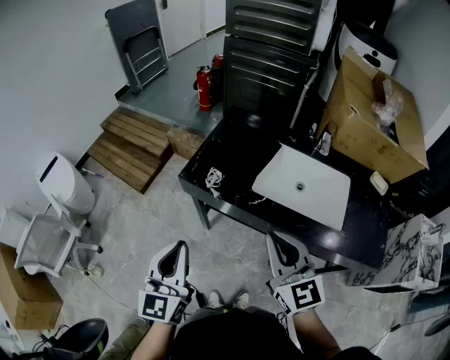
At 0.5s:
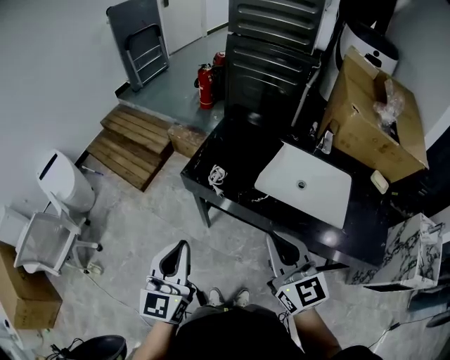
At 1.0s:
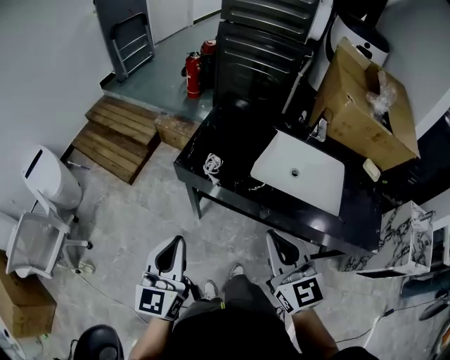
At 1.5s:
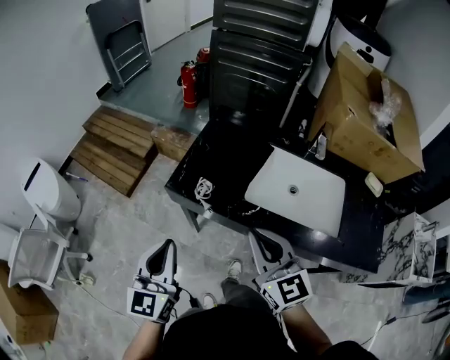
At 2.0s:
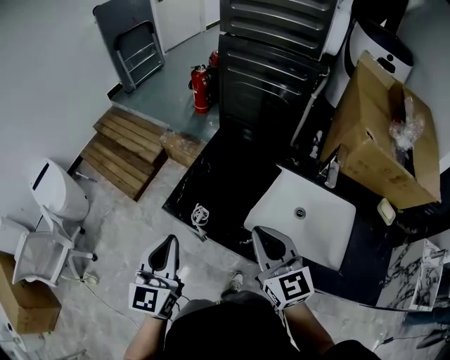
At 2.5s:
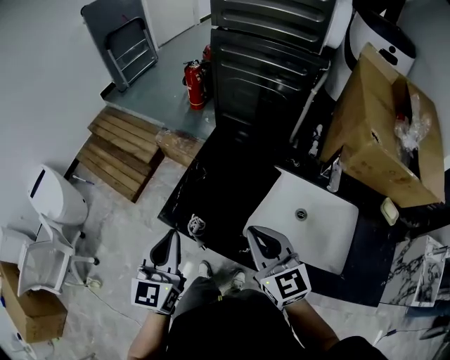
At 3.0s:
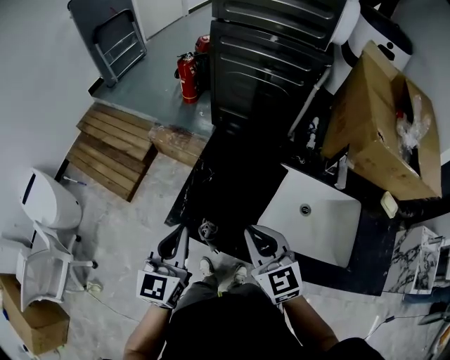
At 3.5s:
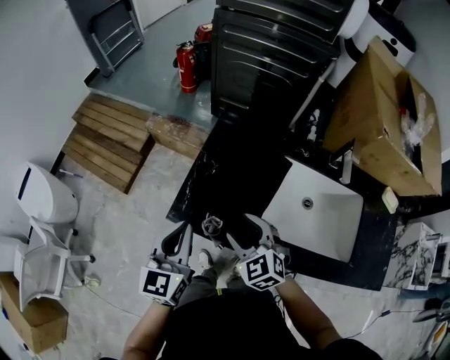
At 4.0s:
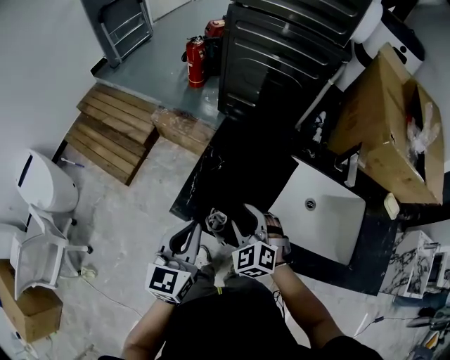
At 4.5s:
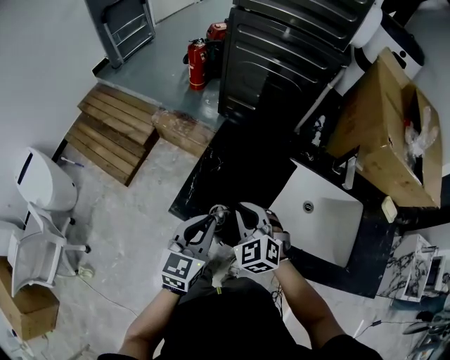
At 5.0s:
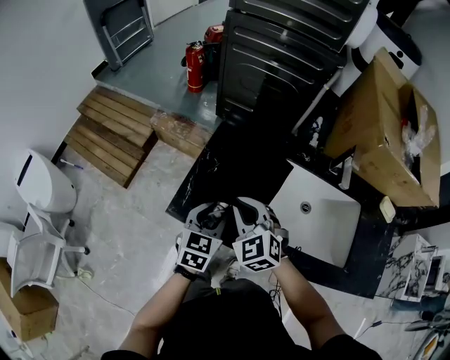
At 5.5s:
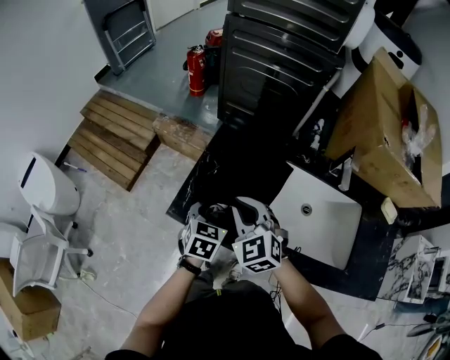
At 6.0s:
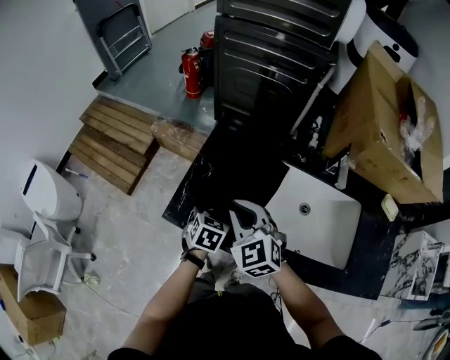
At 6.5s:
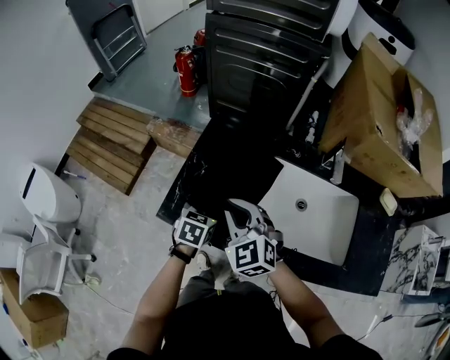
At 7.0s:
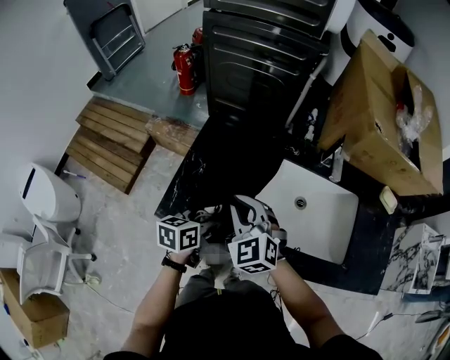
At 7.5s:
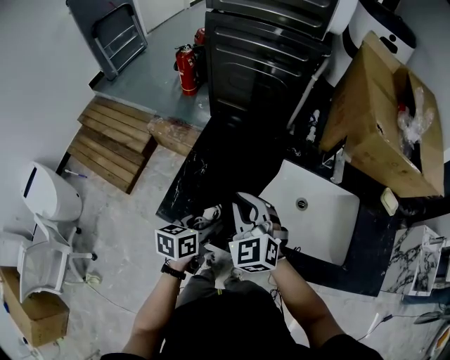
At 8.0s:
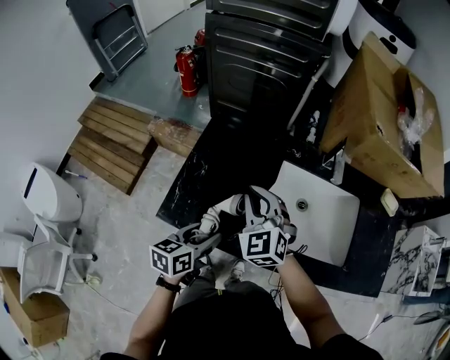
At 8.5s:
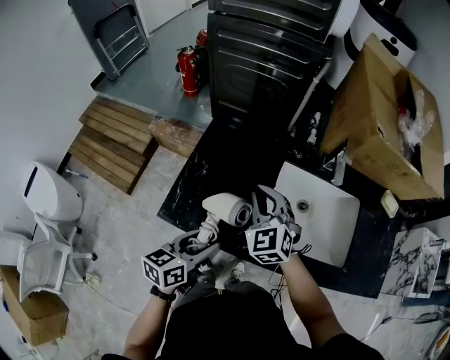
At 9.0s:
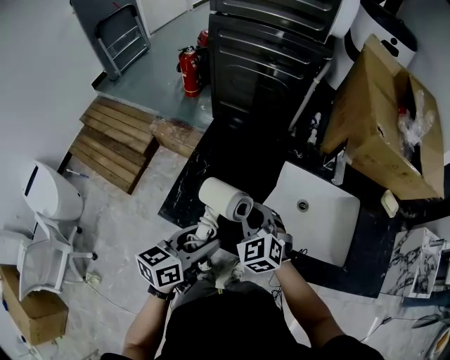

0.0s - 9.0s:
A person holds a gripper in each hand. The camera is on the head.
0.0s - 2.0s: Both grippers travel together forward, approximately 20 cm.
2.0s - 4.5s: The left gripper travels downward and forward by approximately 15 cm, and rotates approximately 20 degrees; the right gripper travels downward, forward and to the left by approximately 20 cm, changes its angle by roughly 40 degrees, and opens and closes again.
4.5s - 7.0s: The right gripper is displaced upward by about 5 cm. The left gripper shifts some 10 cm downward and to the right, changes its angle by some 40 degrees, and opens up.
7.0s - 9.0s: The left gripper goes some 10 cm upward and backward.

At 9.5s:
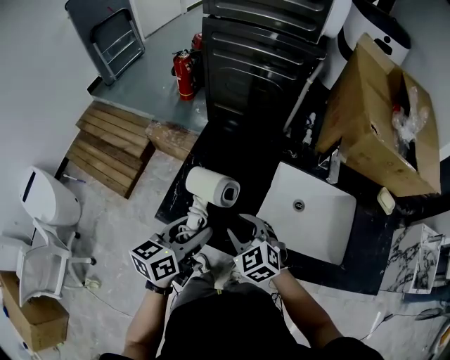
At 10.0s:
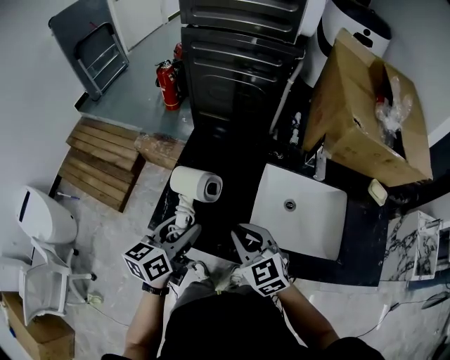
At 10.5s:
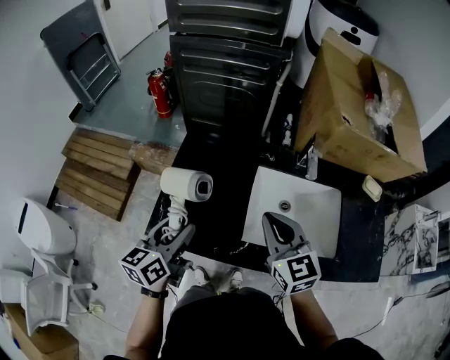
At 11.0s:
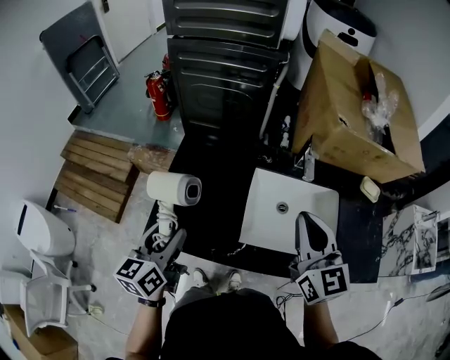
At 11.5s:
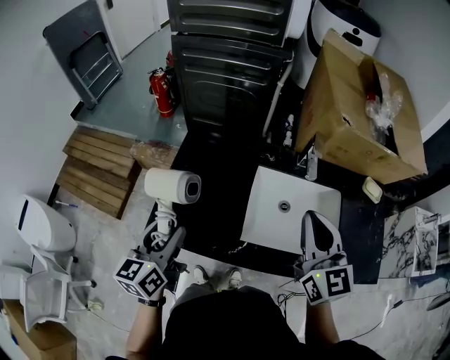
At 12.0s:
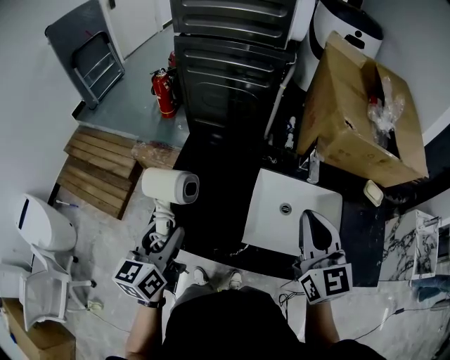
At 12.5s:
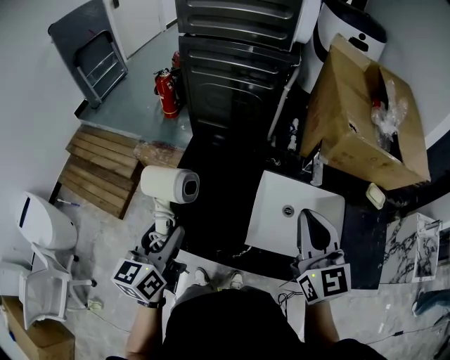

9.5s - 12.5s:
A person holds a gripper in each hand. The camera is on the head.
9.5s - 11.0s: The left gripper shifts by roughly 5 cm, while the right gripper moves upward and to the right, about 30 cm, angles its fingers upward, by some 30 degrees, and closes.
11.0s - 12.5s: The grippers stay close to where they were, moving slightly.

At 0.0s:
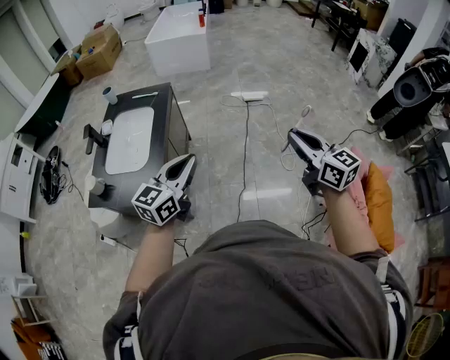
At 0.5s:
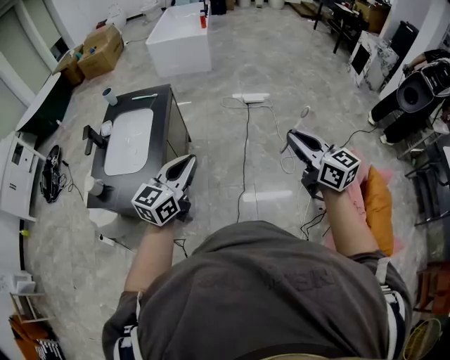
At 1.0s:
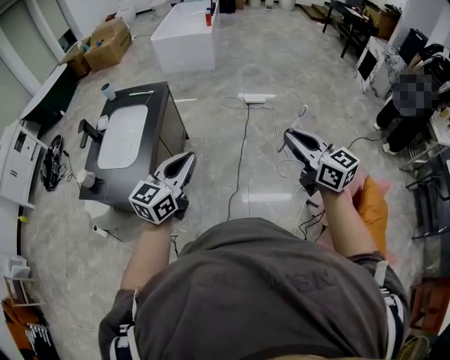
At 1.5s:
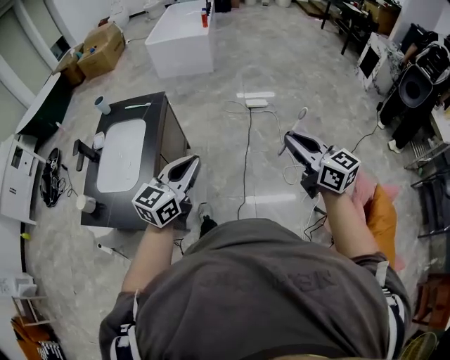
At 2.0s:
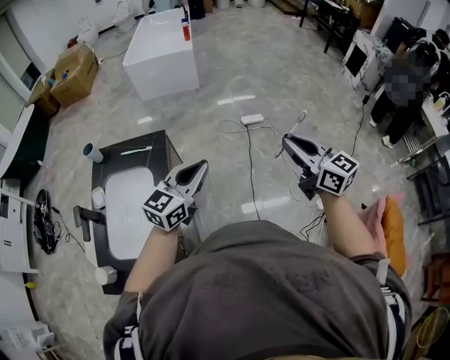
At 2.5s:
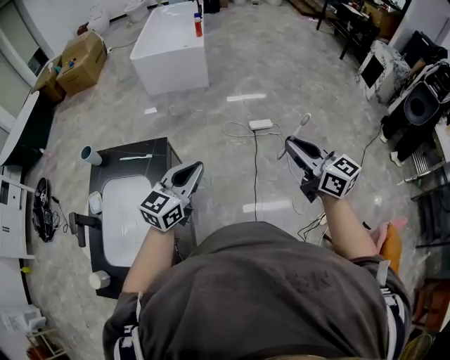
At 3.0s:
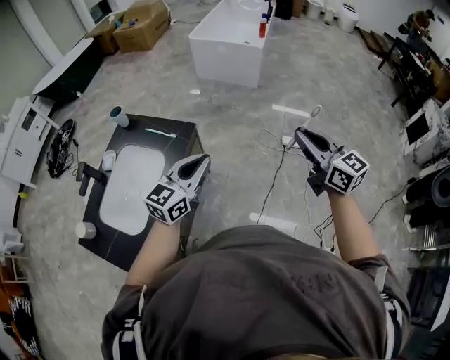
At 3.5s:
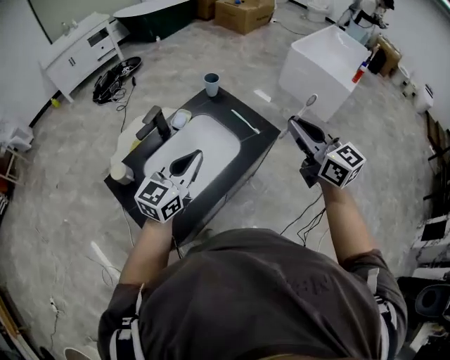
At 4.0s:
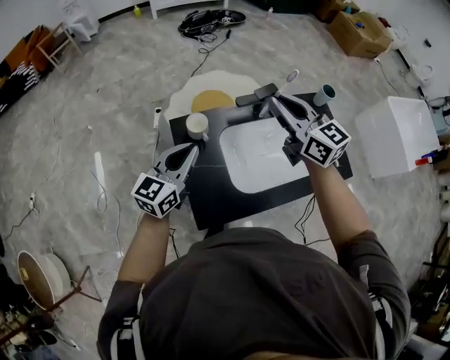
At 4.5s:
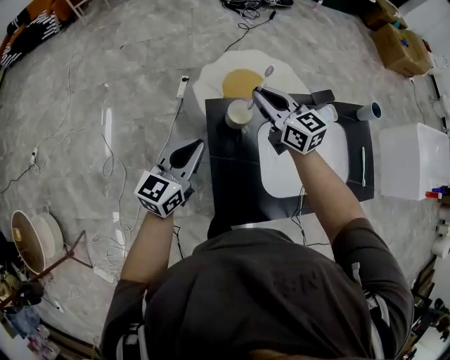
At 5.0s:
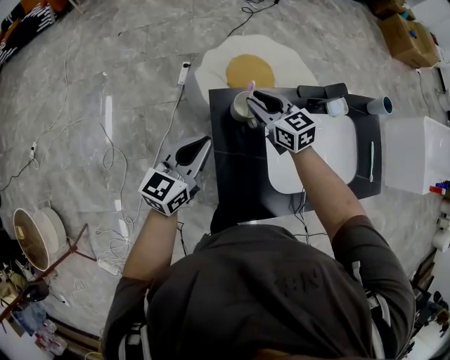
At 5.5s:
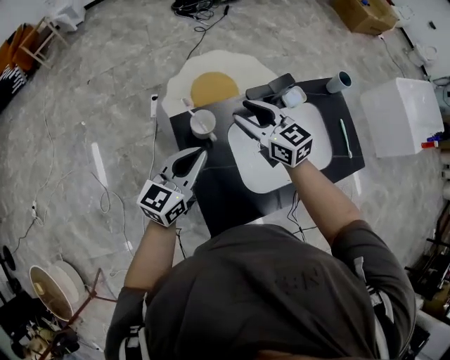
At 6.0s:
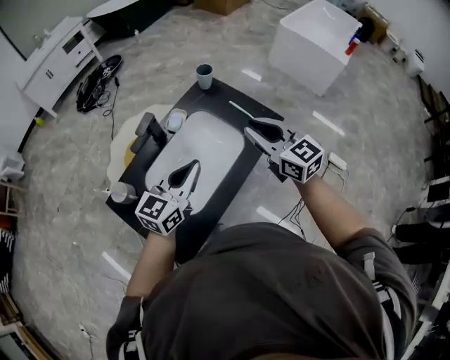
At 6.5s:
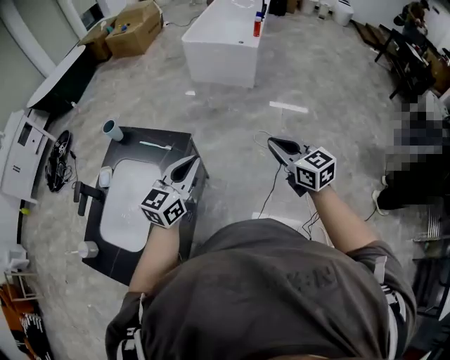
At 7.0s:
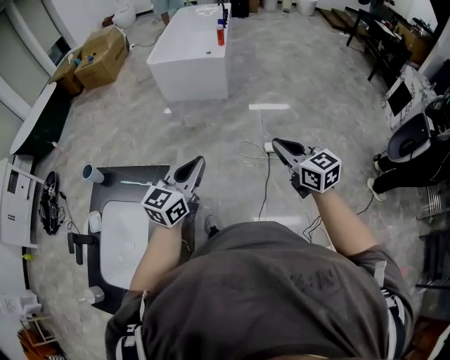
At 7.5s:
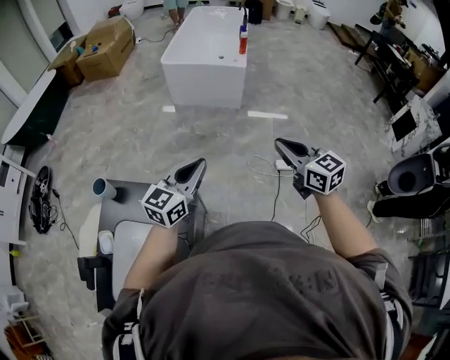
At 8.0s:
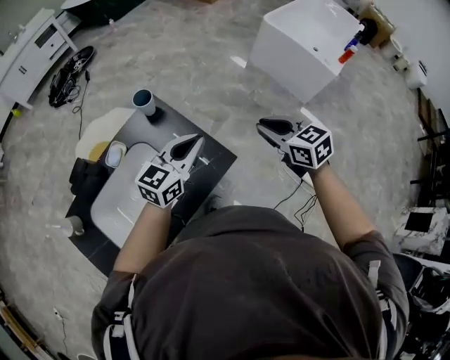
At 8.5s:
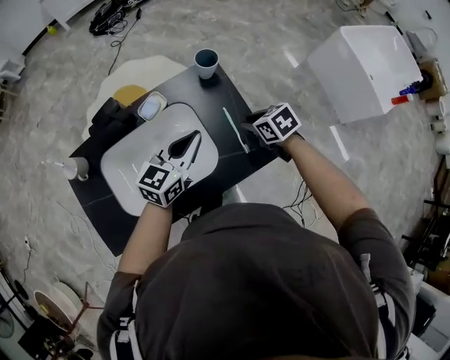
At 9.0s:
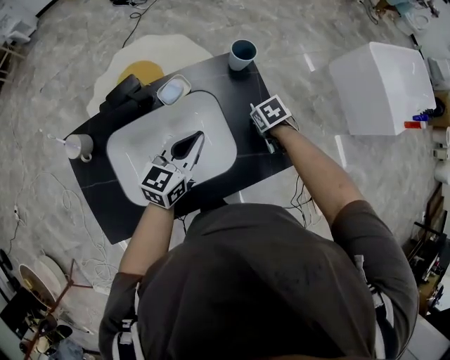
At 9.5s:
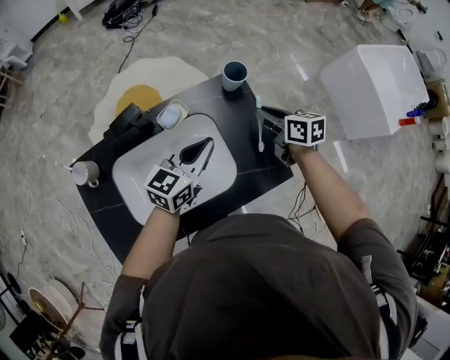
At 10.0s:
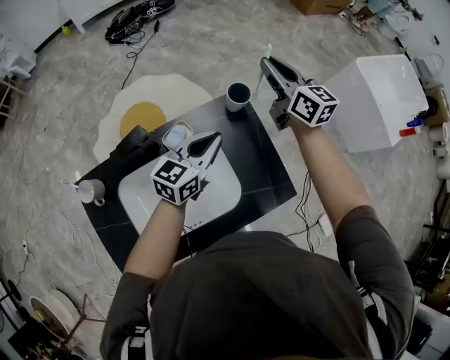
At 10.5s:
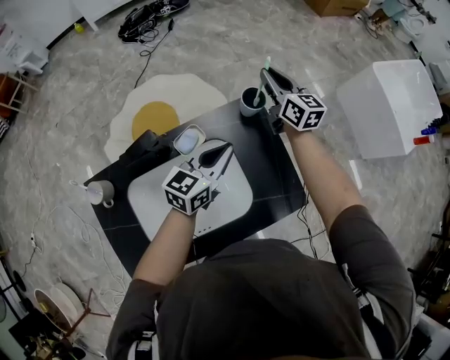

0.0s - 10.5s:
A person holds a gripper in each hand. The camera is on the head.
0.0s - 2.0s: Both grippers travel together forward, about 35 cm.
2.0s - 4.0s: Both grippers are carried about 60 cm. The left gripper changes its angle by approximately 90 degrees. Meanwhile the right gripper changes its angle by roughly 80 degrees.
4.0s - 6.5s: Both grippers are carried about 70 cm. The left gripper changes its angle by some 60 degrees. Meanwhile the right gripper rotates some 60 degrees, and opens, then closes again.
6.5s - 8.5s: The right gripper shifts by roughly 60 cm, tips its fingers downward by roughly 40 degrees, and opens its fingers. The left gripper shifts by about 40 cm, and rotates about 40 degrees.
8.5s - 10.5s: The left gripper moves some 10 cm. Meanwhile the right gripper swings up and down, roughly 30 cm each way, with 2 reversals, and points its fingers some 50 degrees further upward.

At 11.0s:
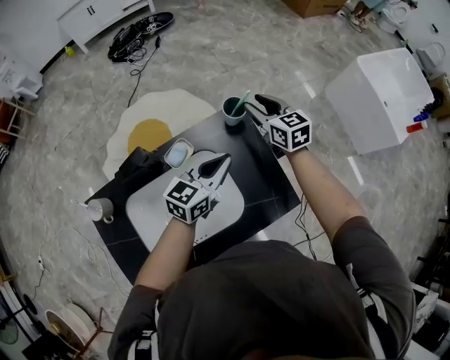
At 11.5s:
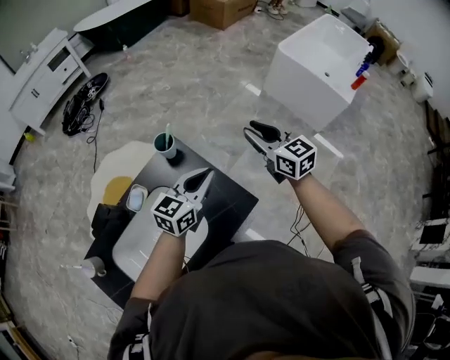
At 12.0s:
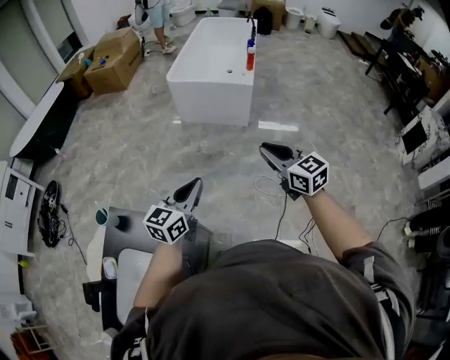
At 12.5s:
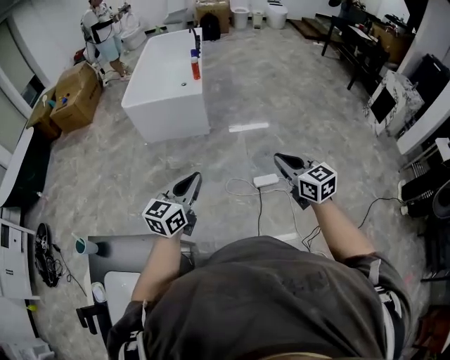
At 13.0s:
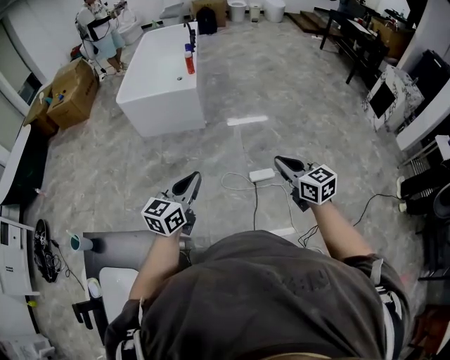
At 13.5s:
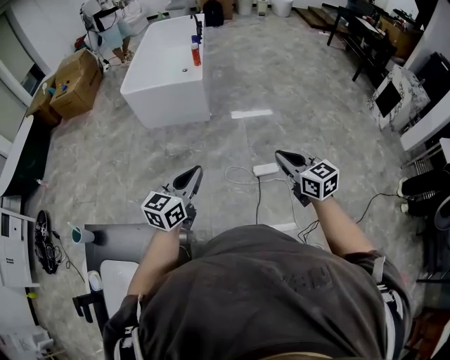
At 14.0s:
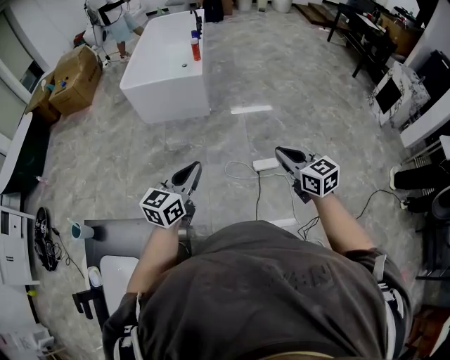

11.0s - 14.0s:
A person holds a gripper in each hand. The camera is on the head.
11.0s - 12.5s: The two grippers travel together, some 80 cm. The right gripper rotates roughly 60 degrees, and closes up; the left gripper rotates about 60 degrees.
